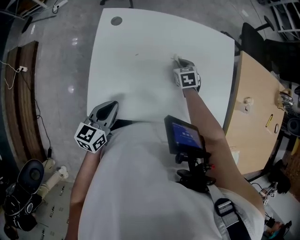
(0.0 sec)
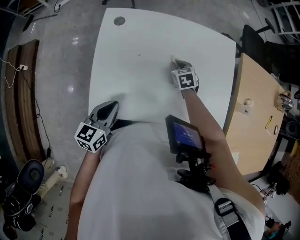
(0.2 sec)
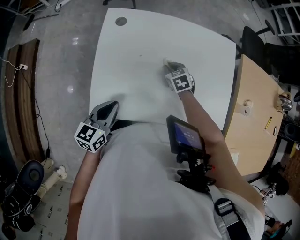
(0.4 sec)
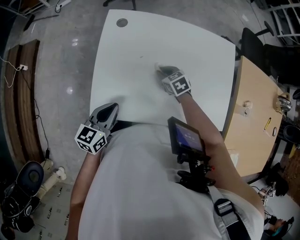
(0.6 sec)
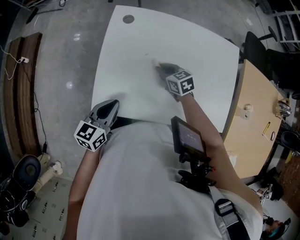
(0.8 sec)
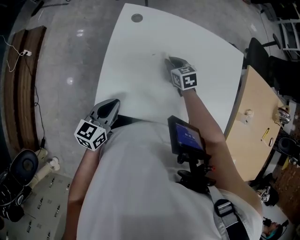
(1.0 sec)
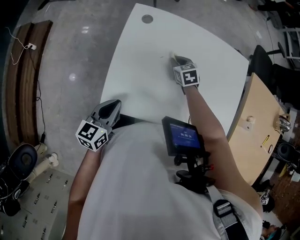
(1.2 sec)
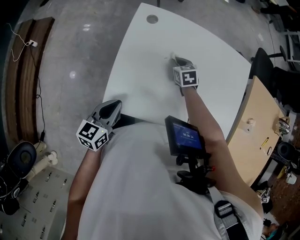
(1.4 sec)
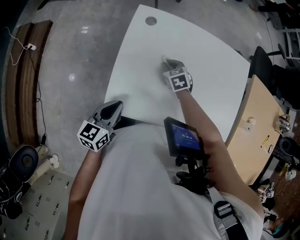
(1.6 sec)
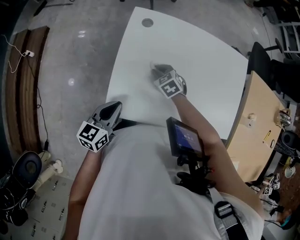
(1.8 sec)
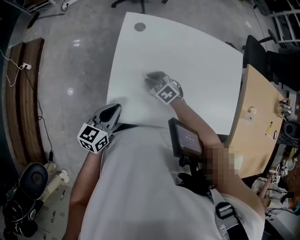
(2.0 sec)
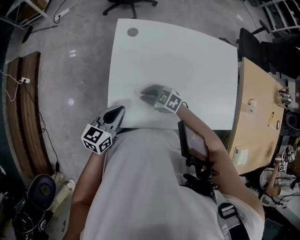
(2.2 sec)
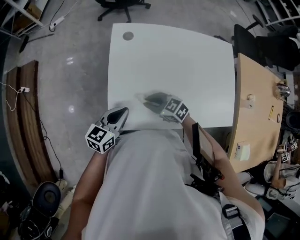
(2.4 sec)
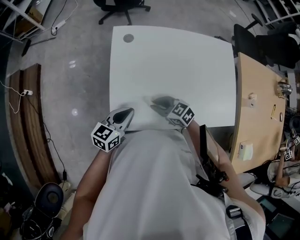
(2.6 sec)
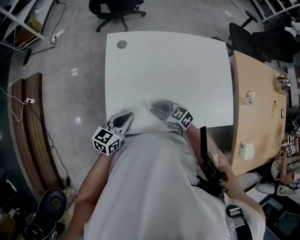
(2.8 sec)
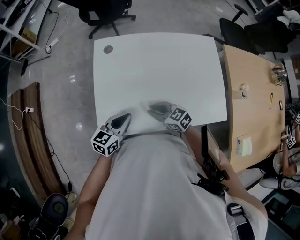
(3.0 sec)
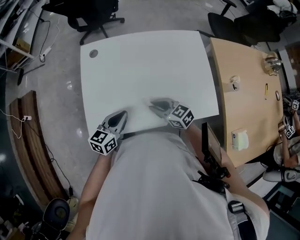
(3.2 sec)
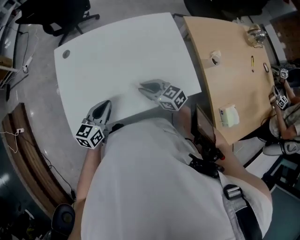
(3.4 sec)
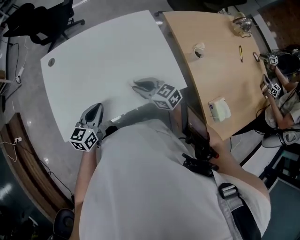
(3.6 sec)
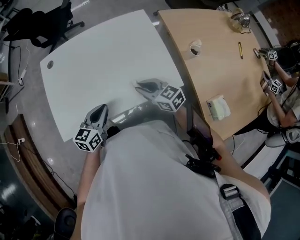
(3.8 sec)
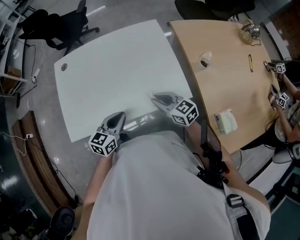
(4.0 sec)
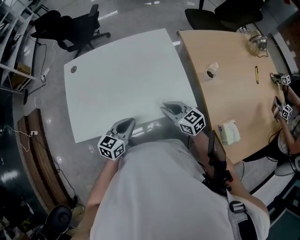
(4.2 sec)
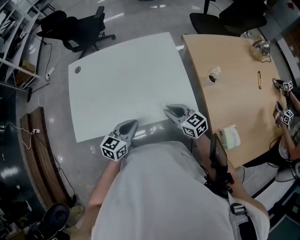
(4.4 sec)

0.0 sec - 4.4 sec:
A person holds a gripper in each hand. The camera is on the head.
0.0 sec - 1.4 sec: The left gripper shifts some 10 cm to the left, while the right gripper shifts approximately 15 cm to the left.
1.4 sec - 3.0 sec: The left gripper moves to the right, approximately 10 cm, and turns by roughly 20 degrees, while the right gripper travels backward and upward by roughly 20 cm, and swivels some 30 degrees.
3.0 sec - 4.4 sec: The grippers both shift to the right by some 30 cm. The right gripper changes its angle by about 20 degrees.

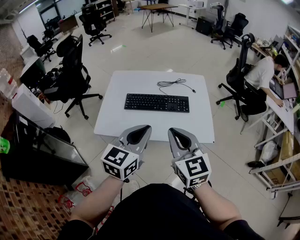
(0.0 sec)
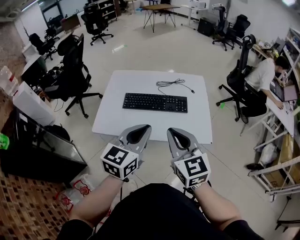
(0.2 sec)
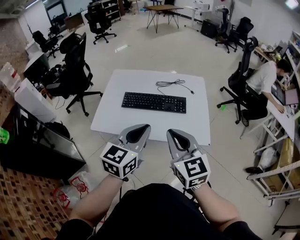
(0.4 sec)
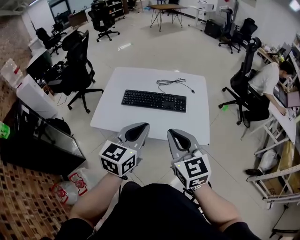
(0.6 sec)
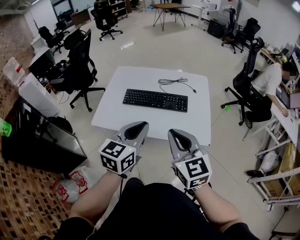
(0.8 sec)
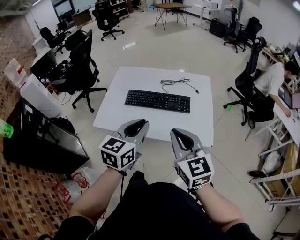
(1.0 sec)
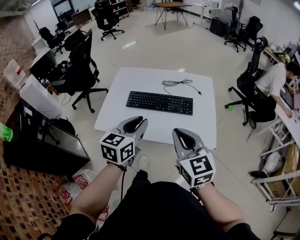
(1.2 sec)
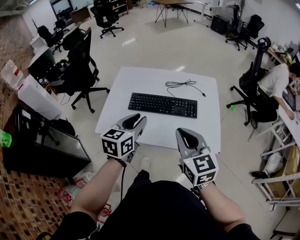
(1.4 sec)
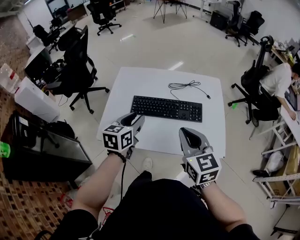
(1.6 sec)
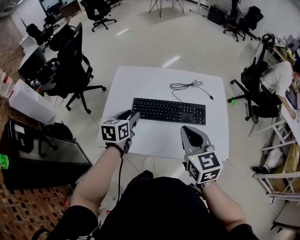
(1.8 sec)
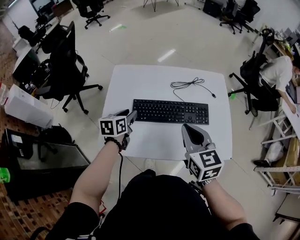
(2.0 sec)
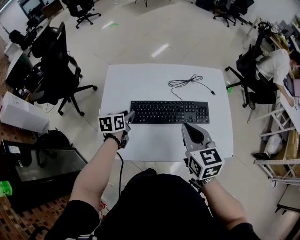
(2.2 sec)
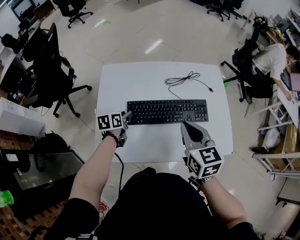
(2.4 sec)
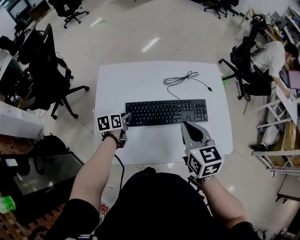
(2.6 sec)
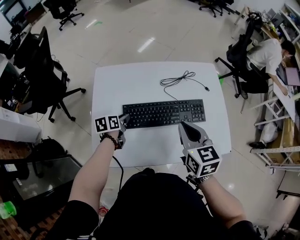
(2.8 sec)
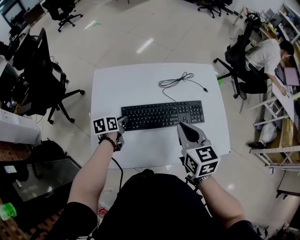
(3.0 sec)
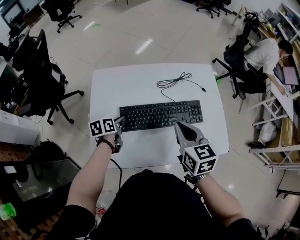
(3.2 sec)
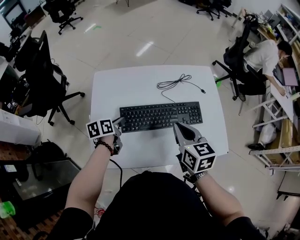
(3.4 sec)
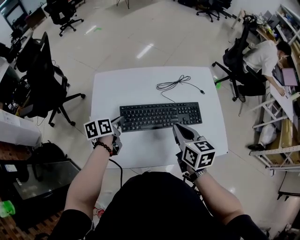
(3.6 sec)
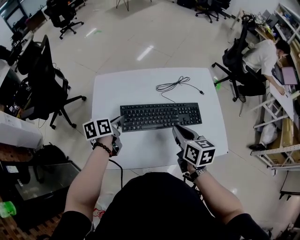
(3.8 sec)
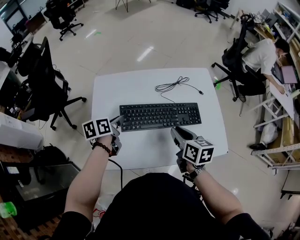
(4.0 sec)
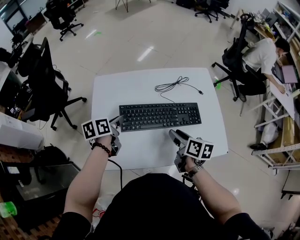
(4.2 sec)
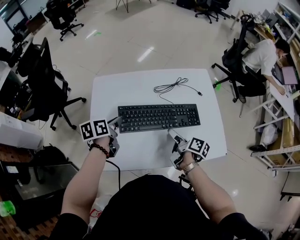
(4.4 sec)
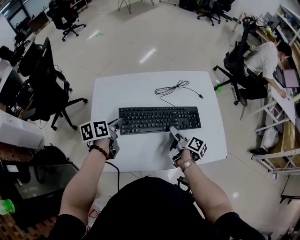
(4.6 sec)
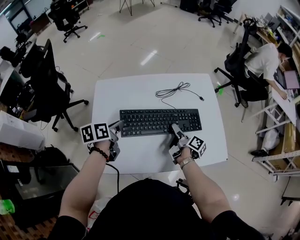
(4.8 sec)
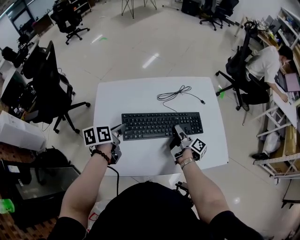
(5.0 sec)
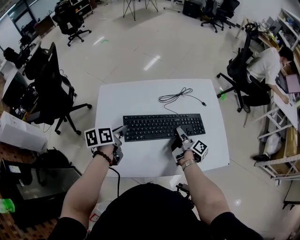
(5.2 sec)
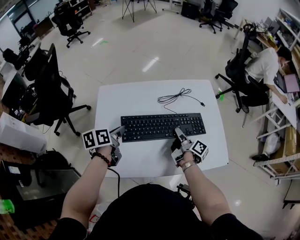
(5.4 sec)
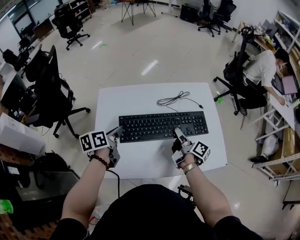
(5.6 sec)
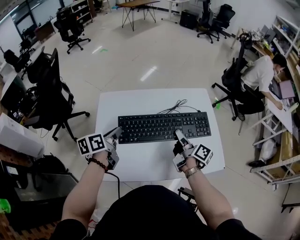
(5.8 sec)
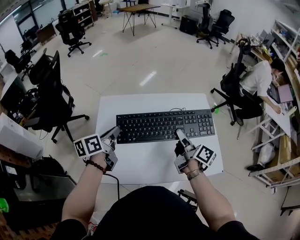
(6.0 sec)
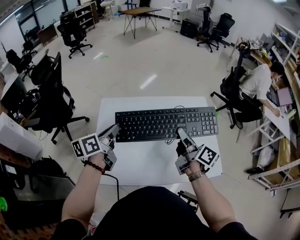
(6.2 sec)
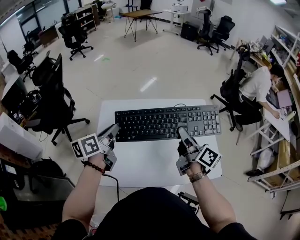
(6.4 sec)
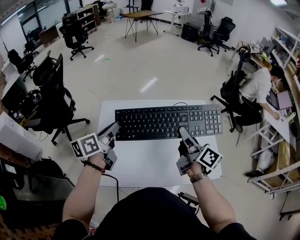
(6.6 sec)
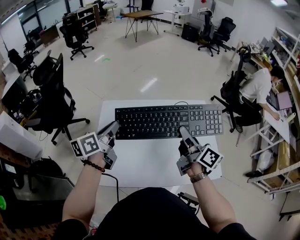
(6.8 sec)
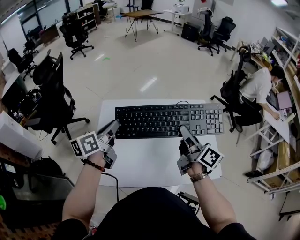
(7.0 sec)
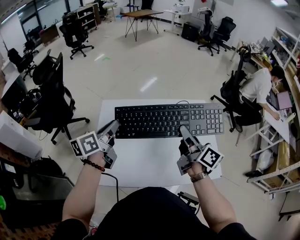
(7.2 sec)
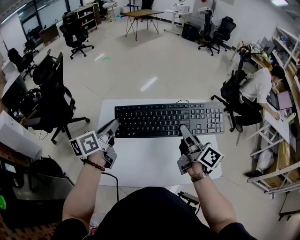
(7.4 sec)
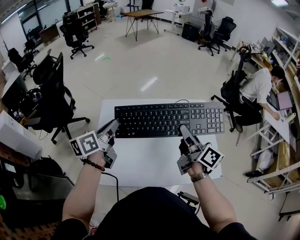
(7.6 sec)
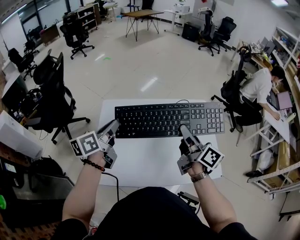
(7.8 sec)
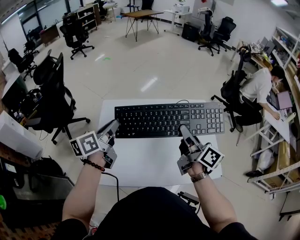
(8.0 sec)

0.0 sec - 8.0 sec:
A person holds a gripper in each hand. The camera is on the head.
0.0 sec - 1.6 sec: The left gripper is displaced forward, downward and to the left by some 25 cm, changes its angle by approximately 20 degrees, and opens its fingers, while the right gripper is displaced forward and downward by some 15 cm.
1.6 sec - 3.2 sec: The left gripper shifts about 25 cm downward, forward and to the left, and rotates approximately 30 degrees. The right gripper moves forward, downward and to the left, approximately 15 cm, and changes its angle by approximately 20 degrees.
3.2 sec - 4.8 sec: The left gripper moves upward, about 10 cm, while the right gripper is displaced downward by approximately 15 cm, rotates around the line of its fingers by some 70 degrees, clockwise from behind, and opens.
4.8 sec - 6.4 sec: The right gripper moves upward, some 25 cm, swivels approximately 30 degrees, and closes, while the left gripper heads upward, covering some 15 cm, and swivels approximately 30 degrees.
6.4 sec - 8.0 sec: The grippers move only a little.

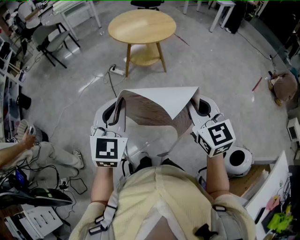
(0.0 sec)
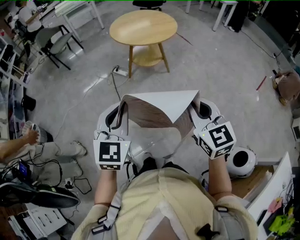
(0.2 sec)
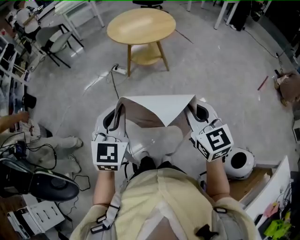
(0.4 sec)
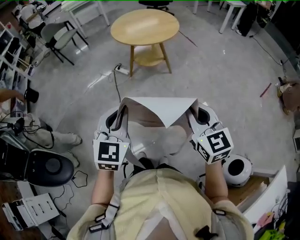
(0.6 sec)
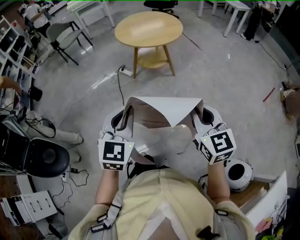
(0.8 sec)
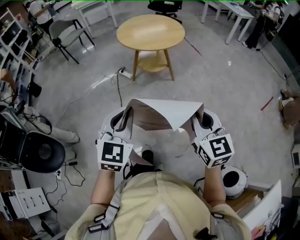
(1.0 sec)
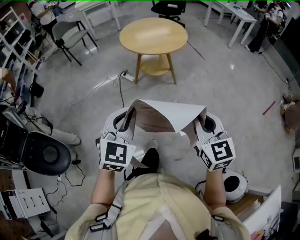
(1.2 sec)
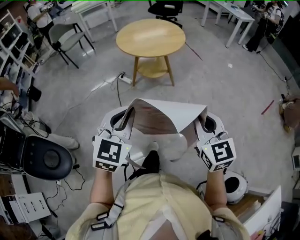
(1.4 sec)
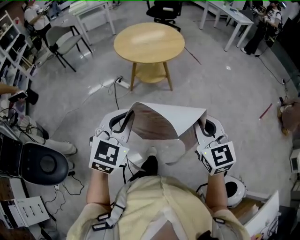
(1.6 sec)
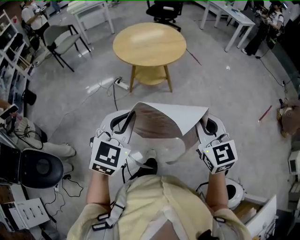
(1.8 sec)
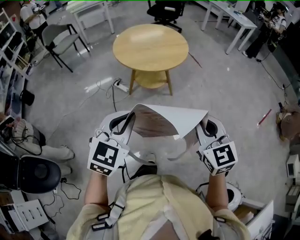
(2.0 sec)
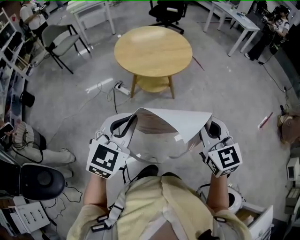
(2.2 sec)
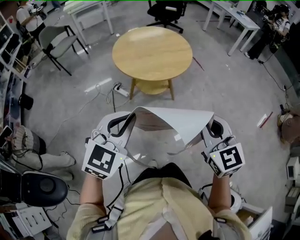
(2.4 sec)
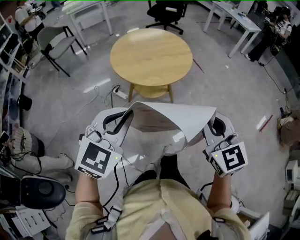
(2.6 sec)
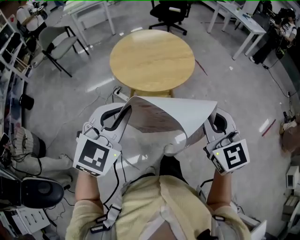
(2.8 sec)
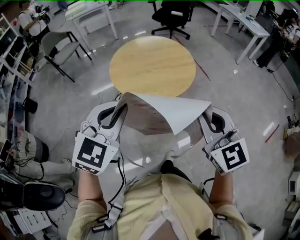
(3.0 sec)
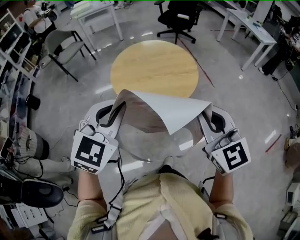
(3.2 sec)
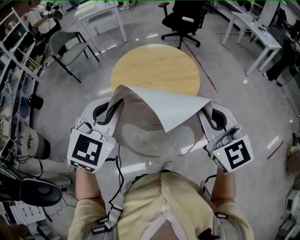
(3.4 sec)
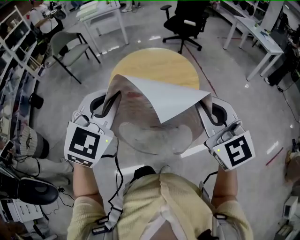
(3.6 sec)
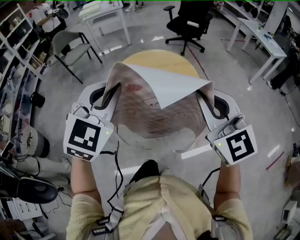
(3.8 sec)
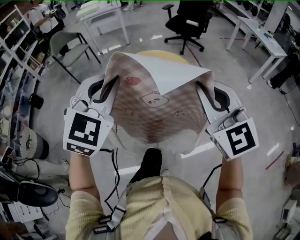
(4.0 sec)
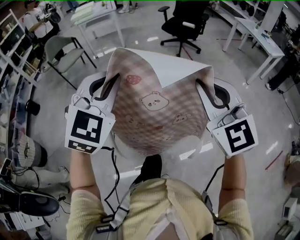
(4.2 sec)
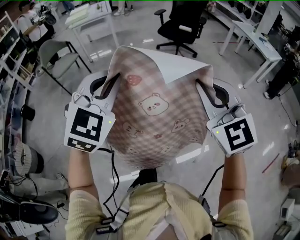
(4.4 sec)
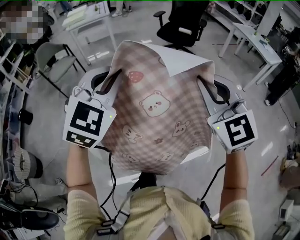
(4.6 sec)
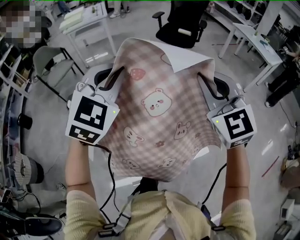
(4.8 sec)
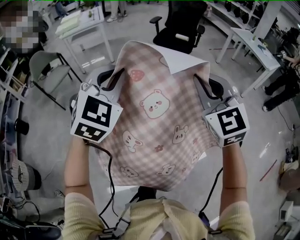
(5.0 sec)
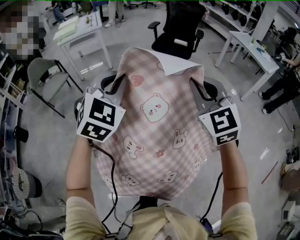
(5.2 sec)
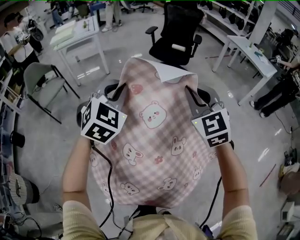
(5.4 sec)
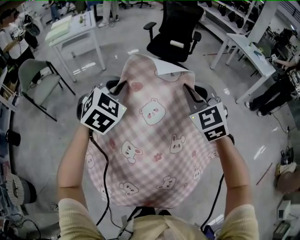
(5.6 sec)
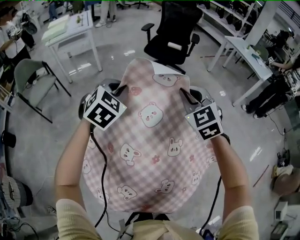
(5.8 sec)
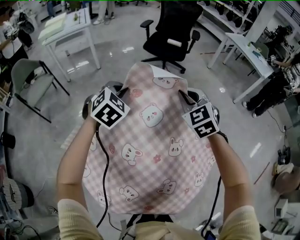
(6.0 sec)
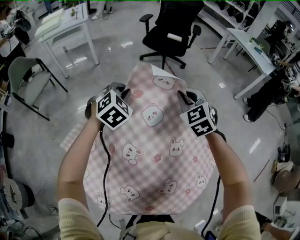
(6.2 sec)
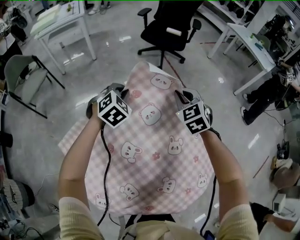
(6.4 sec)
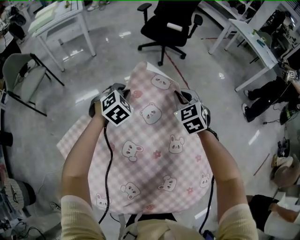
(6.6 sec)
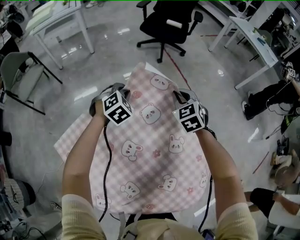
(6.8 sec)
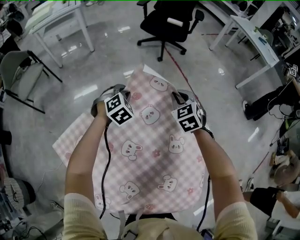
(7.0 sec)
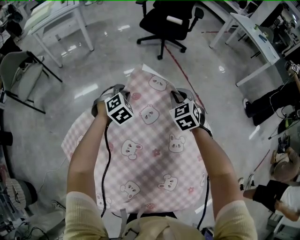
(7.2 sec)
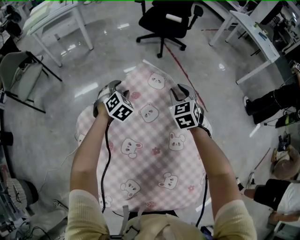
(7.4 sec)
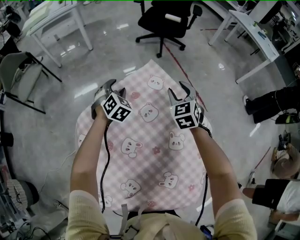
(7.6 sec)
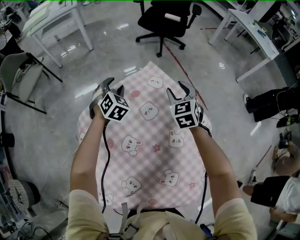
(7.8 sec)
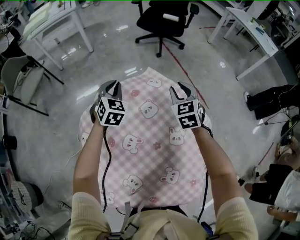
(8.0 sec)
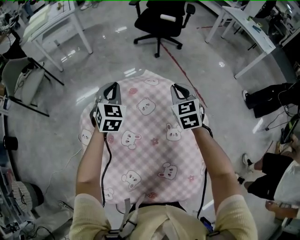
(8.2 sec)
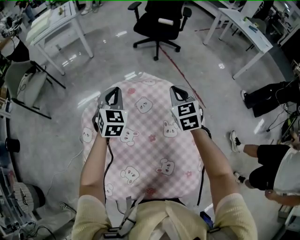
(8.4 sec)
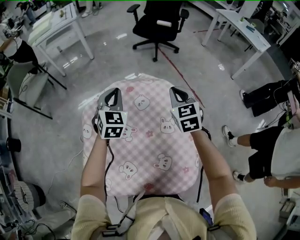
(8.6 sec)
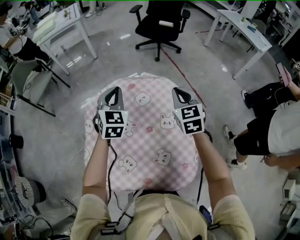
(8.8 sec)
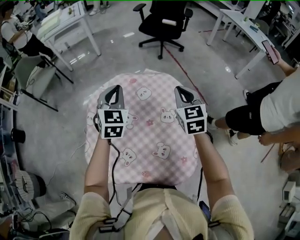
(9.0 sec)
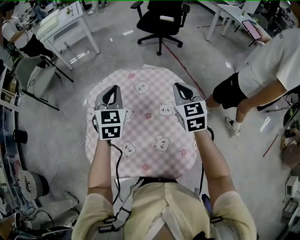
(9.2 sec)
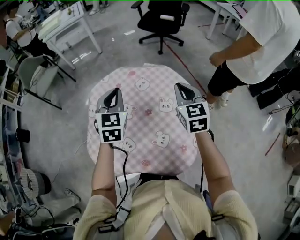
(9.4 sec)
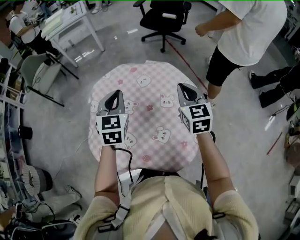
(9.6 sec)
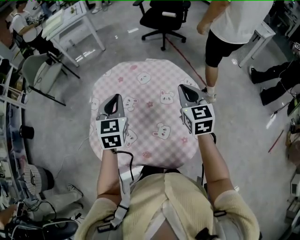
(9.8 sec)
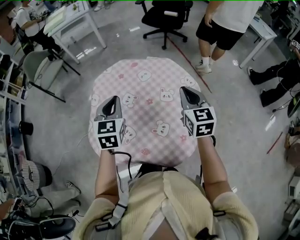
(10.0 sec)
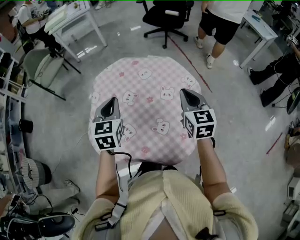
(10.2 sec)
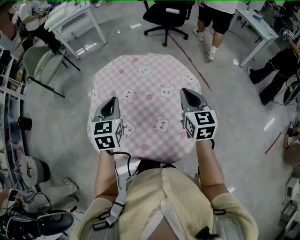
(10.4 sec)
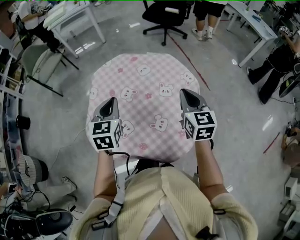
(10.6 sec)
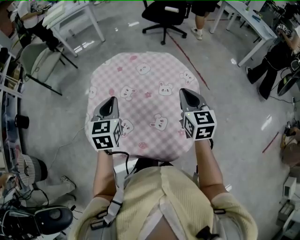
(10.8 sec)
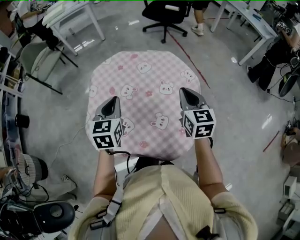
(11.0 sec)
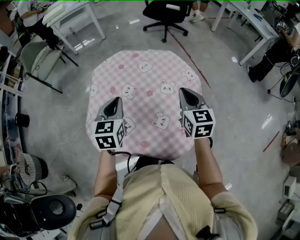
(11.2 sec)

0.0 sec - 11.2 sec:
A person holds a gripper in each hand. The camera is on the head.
0.0 sec - 1.6 sec: The two grippers go some 15 cm to the right and forward.
1.6 sec - 3.2 sec: Both grippers travel together forward, about 40 cm.
3.2 sec - 4.8 sec: The pair of grippers is taken forward, about 40 cm.
4.8 sec - 6.4 sec: The left gripper goes some 40 cm downward and forward, and changes its angle by roughly 30 degrees, while the right gripper moves forward and downward, roughly 40 cm, and rotates approximately 30 degrees.
6.4 sec - 8.0 sec: The right gripper opens its fingers; the left gripper reaches roughly 10 cm downward, then returns, turns by approximately 20 degrees, and opens and closes again.
8.0 sec - 9.6 sec: The grippers both shift backward and upward by some 30 cm. The right gripper closes its fingers.
9.6 sec - 11.2 sec: The grippers both shift backward by about 5 cm.
